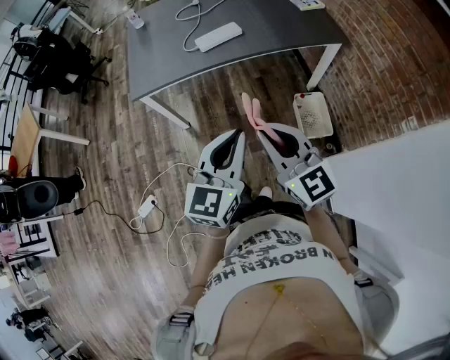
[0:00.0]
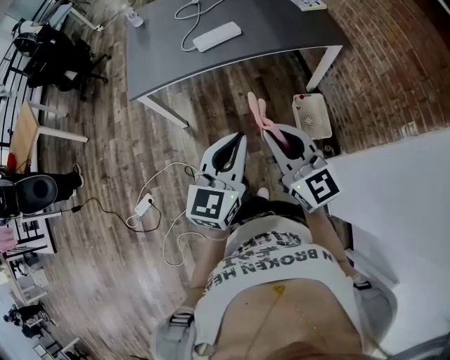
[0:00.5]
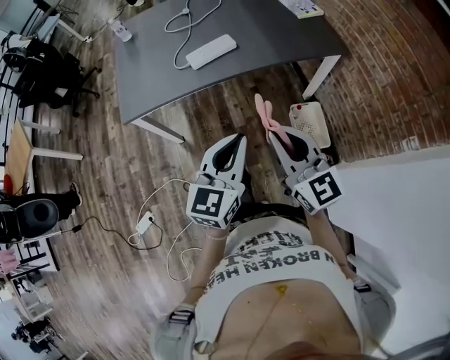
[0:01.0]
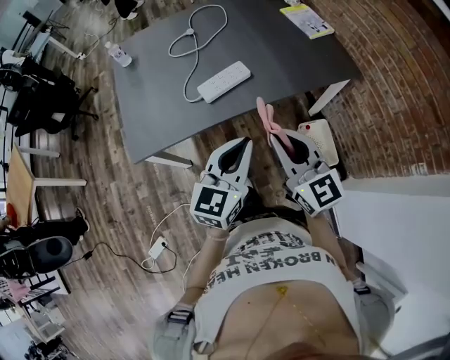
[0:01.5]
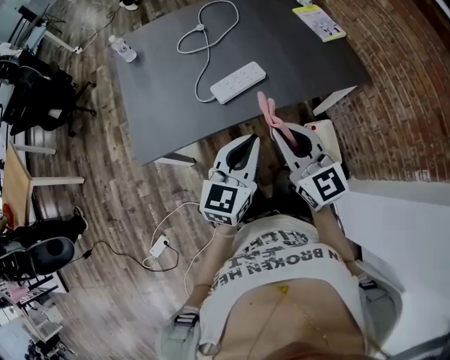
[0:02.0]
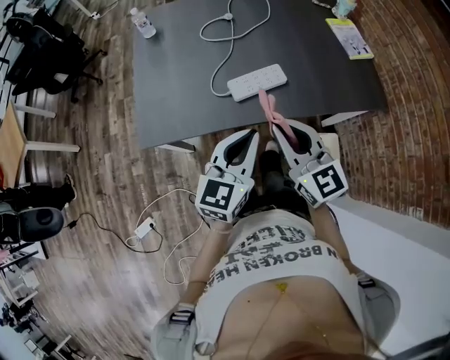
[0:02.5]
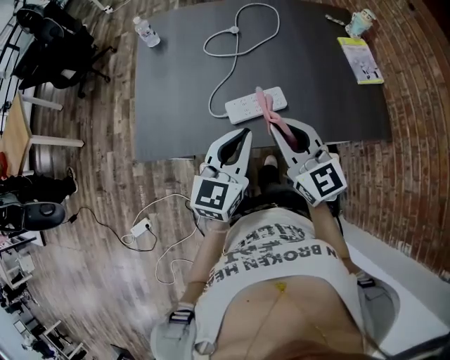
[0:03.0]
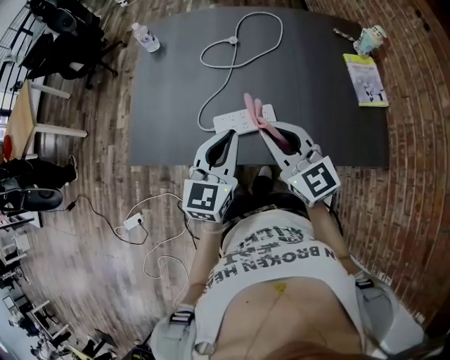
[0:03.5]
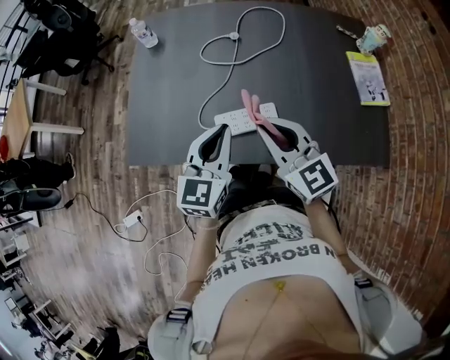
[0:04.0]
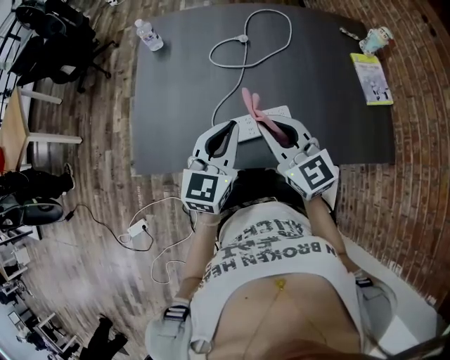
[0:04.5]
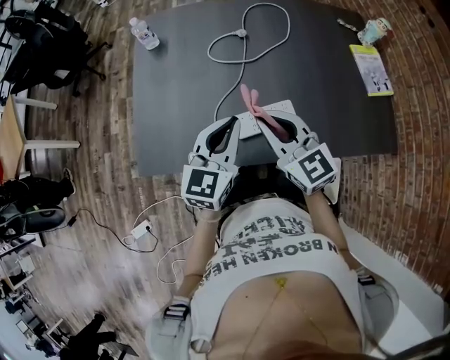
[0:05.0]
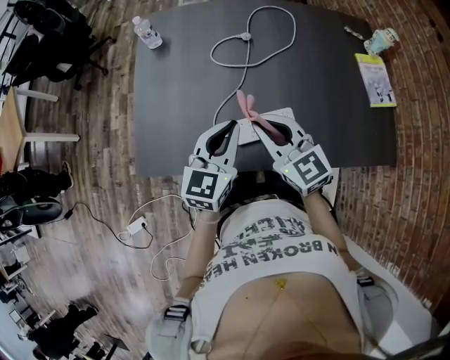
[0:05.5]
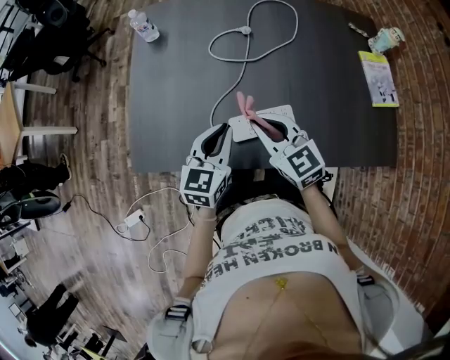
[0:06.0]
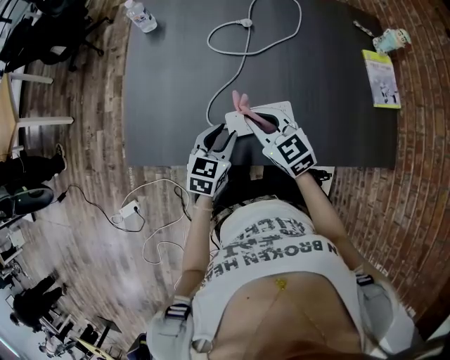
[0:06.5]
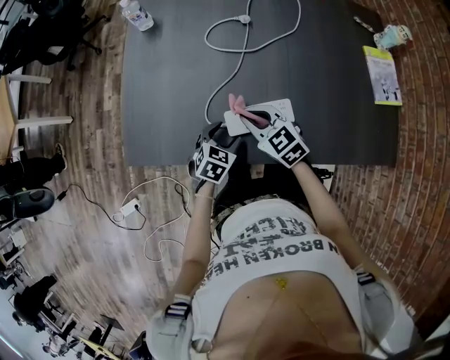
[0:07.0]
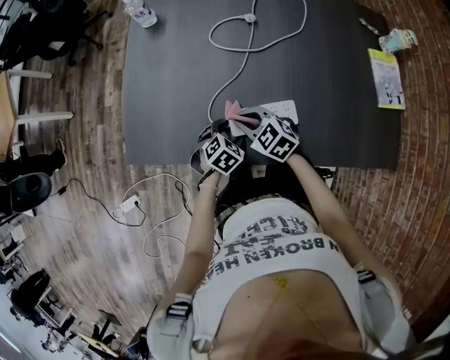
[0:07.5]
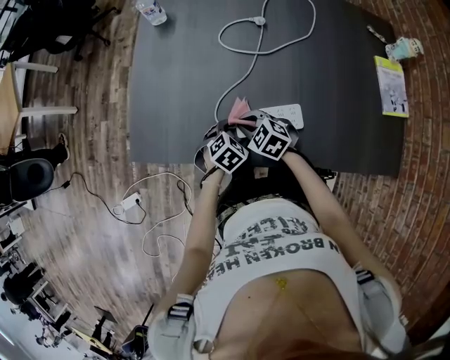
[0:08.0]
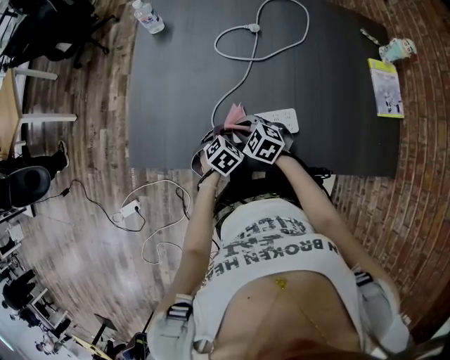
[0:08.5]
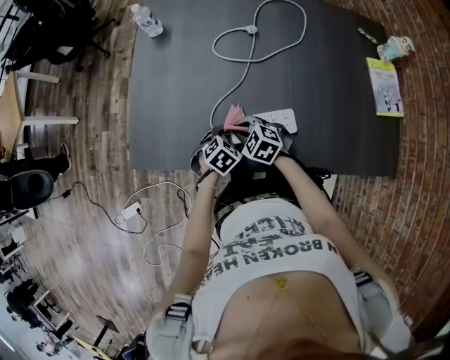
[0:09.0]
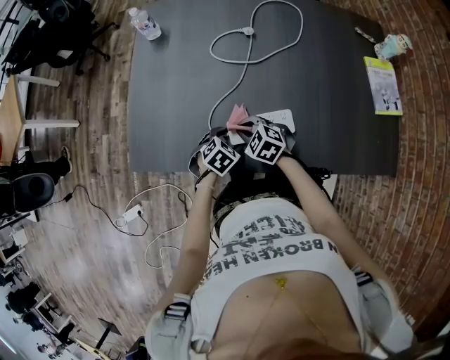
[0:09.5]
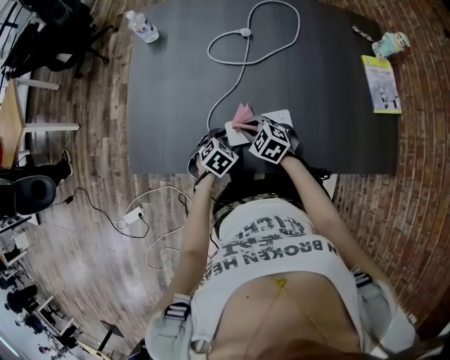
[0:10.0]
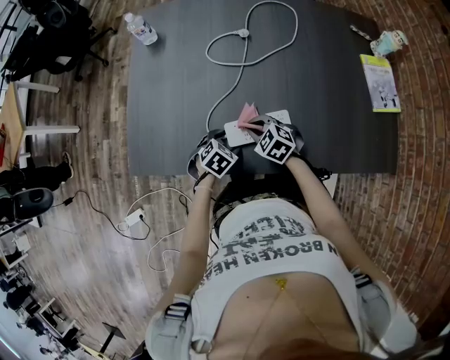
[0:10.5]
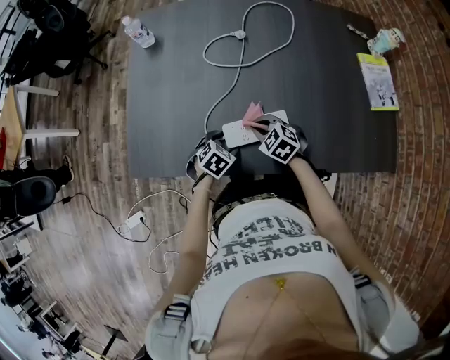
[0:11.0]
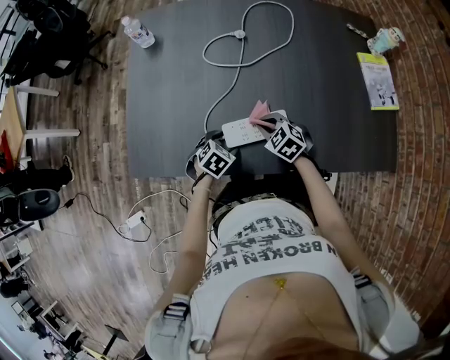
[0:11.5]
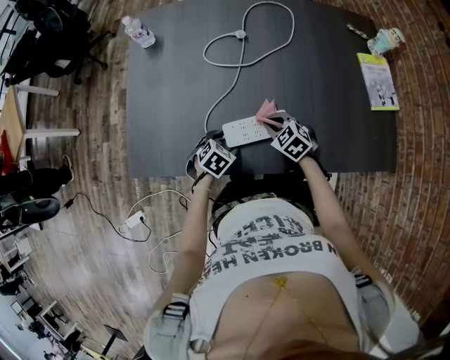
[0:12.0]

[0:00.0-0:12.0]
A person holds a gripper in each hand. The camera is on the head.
0:00.0 to 0:02.0: Both grippers move forward, about 35 cm.
0:02.0 to 0:04.0: The right gripper shifts by approximately 25 cm, and changes its angle by roughly 30 degrees. The left gripper moves some 25 cm, and changes its angle by roughly 30 degrees.
0:04.0 to 0:06.0: Both grippers travel together downward, to the left and forward, approximately 15 cm.
0:06.0 to 0:08.0: Both grippers move downward, roughly 20 cm. The right gripper tips its fingers downward by approximately 30 degrees. Meanwhile the left gripper angles its fingers downward, by roughly 40 degrees, and opens.
0:08.0 to 0:10.0: There are only small adjustments of the grippers.
0:10.0 to 0:12.0: The right gripper shifts about 10 cm to the right.

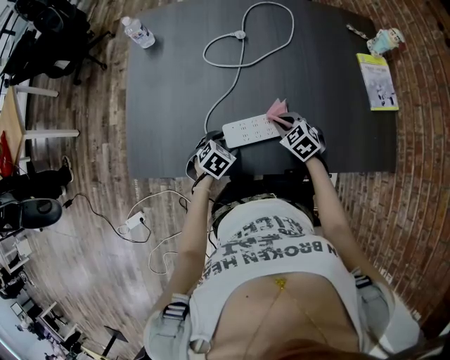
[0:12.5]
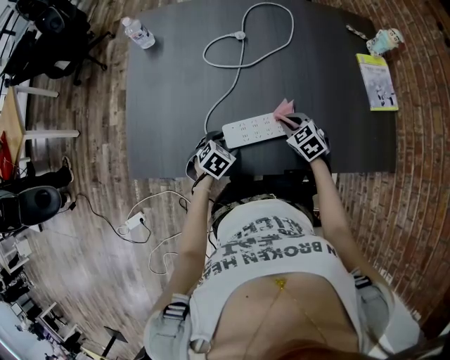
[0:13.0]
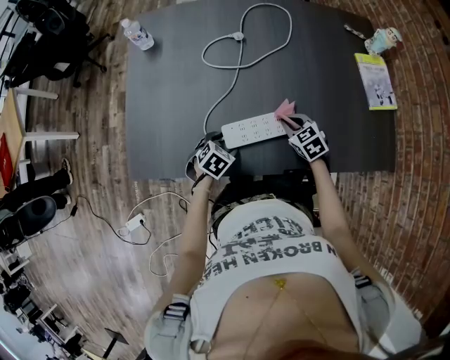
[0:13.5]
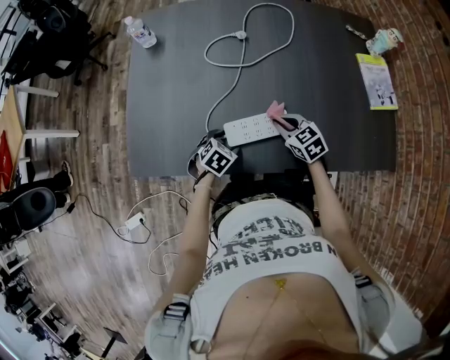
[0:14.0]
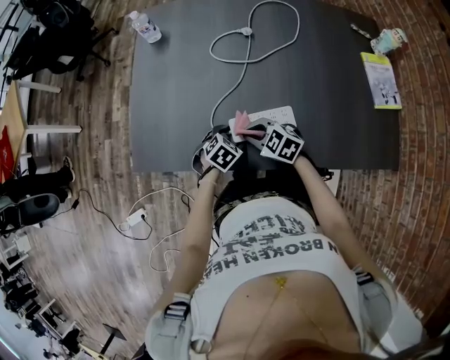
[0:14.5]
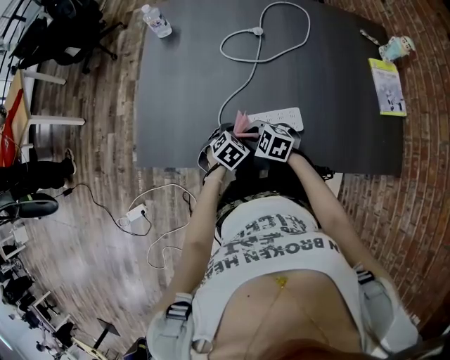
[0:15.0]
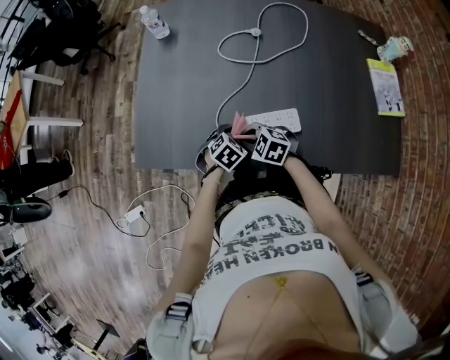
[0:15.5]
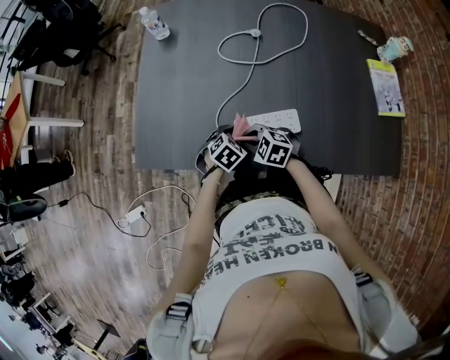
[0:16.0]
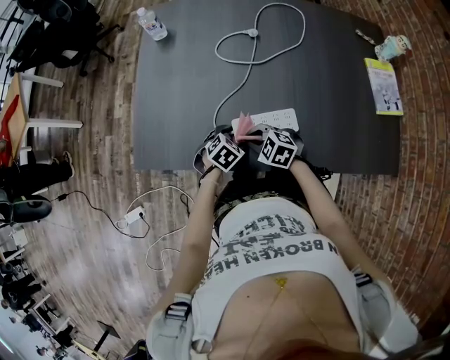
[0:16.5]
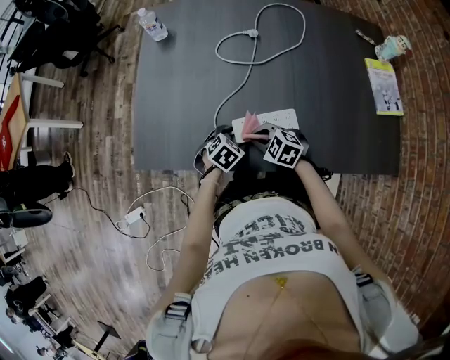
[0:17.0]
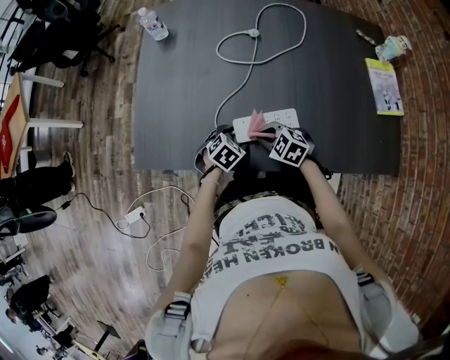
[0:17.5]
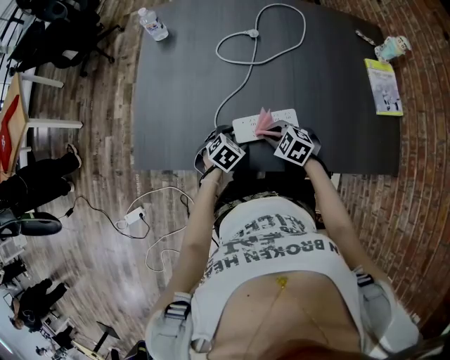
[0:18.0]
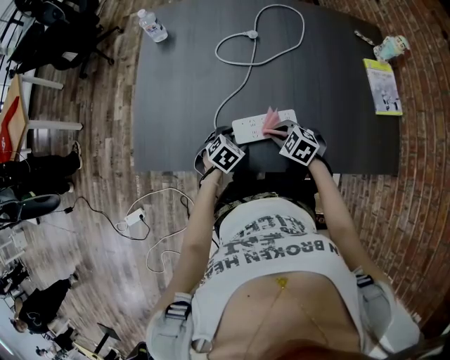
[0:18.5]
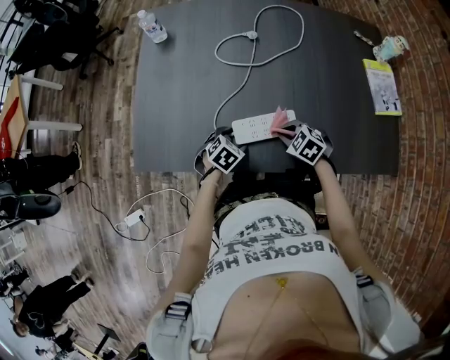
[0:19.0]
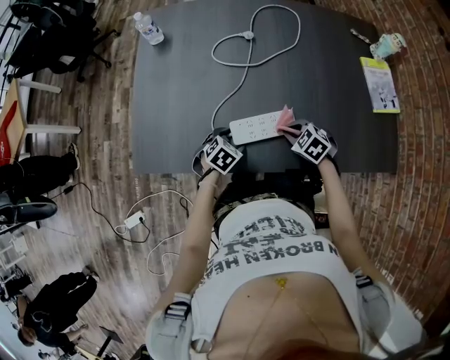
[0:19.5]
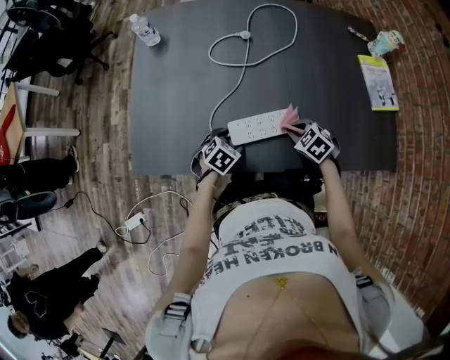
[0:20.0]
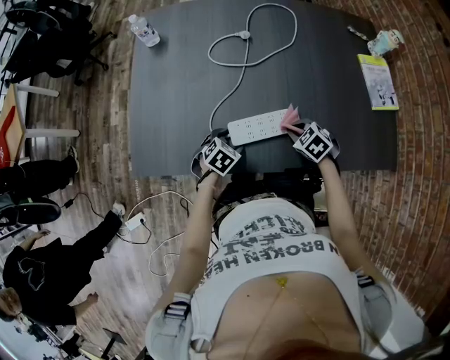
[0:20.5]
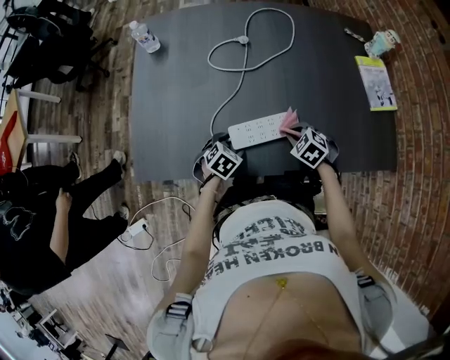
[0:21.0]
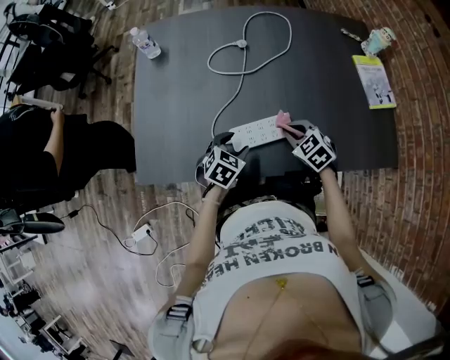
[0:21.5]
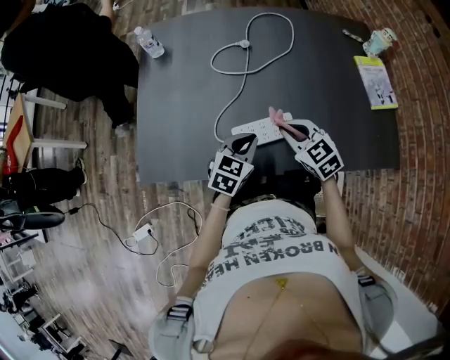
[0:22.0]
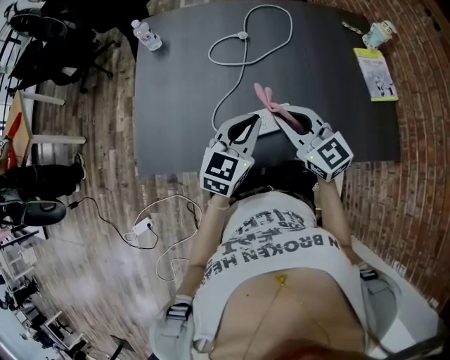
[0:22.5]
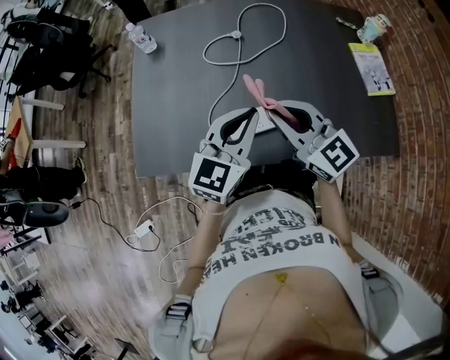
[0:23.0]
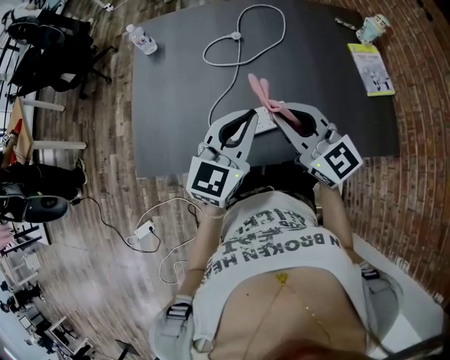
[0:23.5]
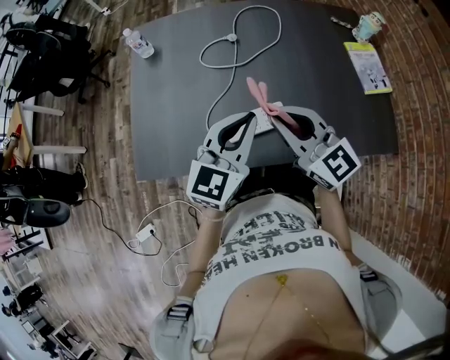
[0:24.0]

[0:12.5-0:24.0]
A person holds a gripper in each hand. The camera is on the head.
0:12.5 to 0:14.5: The right gripper changes place by approximately 15 cm, and turns by about 30 degrees.
0:14.5 to 0:16.5: There are only small adjustments of the grippers.
0:16.5 to 0:18.5: The right gripper moves approximately 10 cm.
0:18.5 to 0:20.0: The right gripper goes about 10 cm to the right.
0:20.0 to 0:22.0: The left gripper travels upward by some 15 cm, changes its angle by approximately 30 degrees, and closes up. Meanwhile the right gripper goes about 15 cm upward and to the left, and changes its angle by roughly 30 degrees.
0:22.0 to 0:24.0: The grippers both shift upward by some 15 cm. The right gripper points its fingers roughly 30 degrees further upward. Meanwhile the left gripper swivels about 30 degrees.

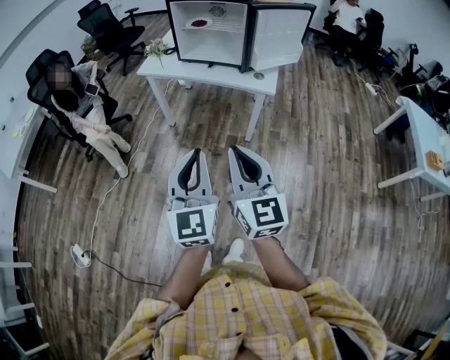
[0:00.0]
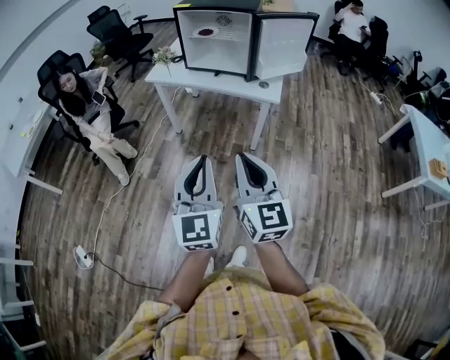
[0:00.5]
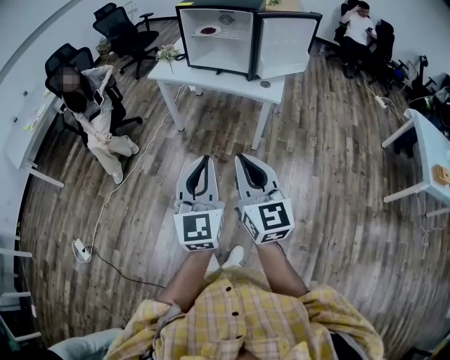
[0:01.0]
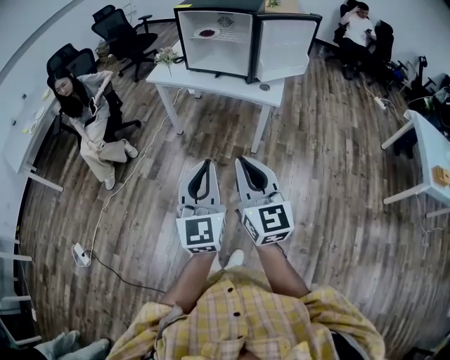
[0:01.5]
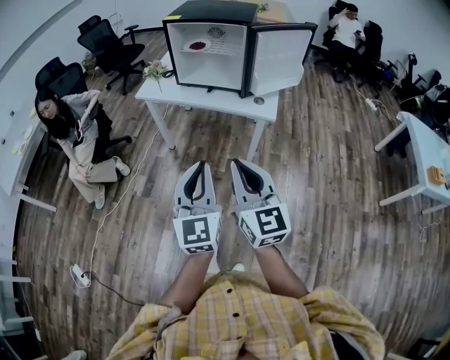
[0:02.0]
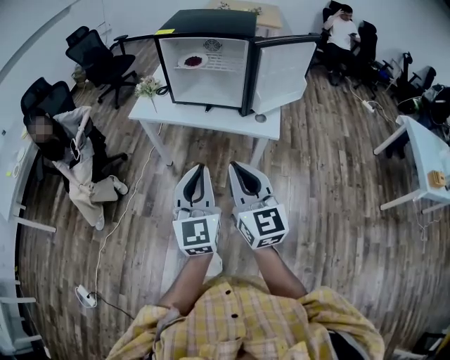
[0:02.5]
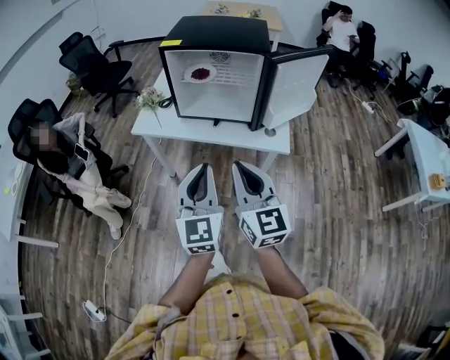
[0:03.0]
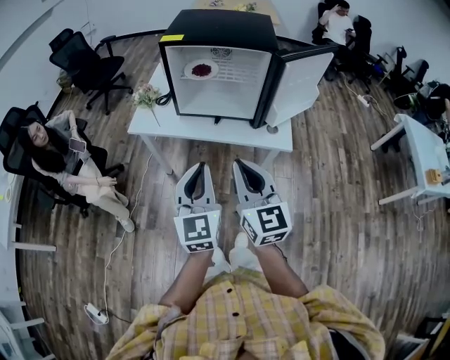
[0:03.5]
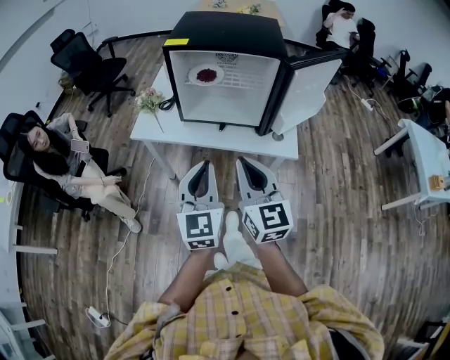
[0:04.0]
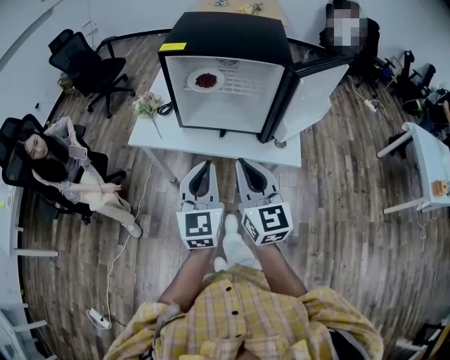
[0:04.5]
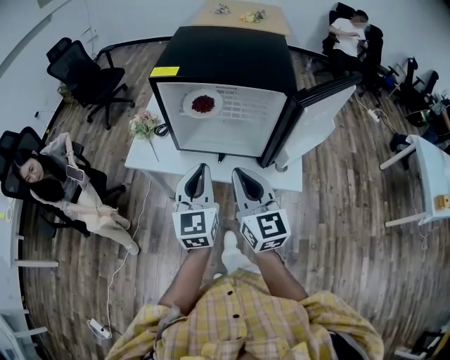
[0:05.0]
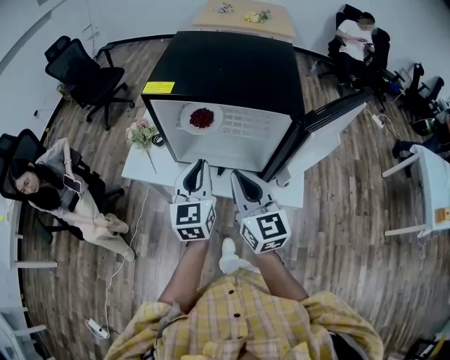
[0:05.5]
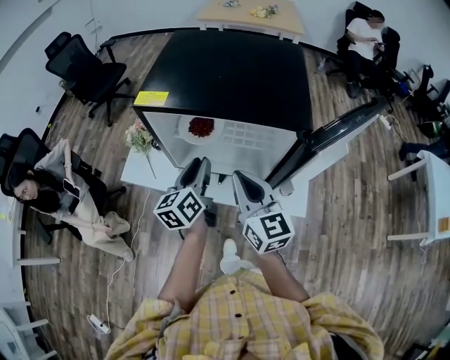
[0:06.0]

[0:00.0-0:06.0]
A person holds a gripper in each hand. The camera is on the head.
0:00.0 to 0:02.0: The two grippers go approximately 10 cm forward.
0:02.0 to 0:04.0: Both grippers travel together forward, about 30 cm.
0:04.0 to 0:06.0: The grippers both shift forward by approximately 25 cm. The left gripper changes its angle by roughly 40 degrees, and opens.
